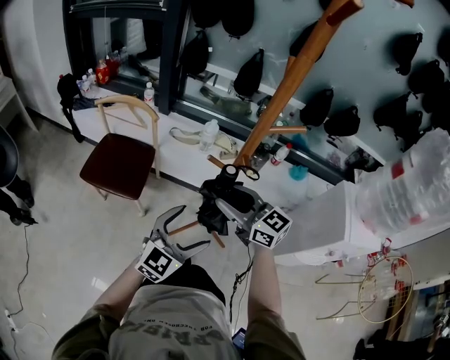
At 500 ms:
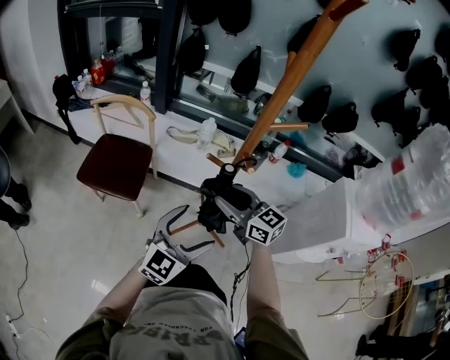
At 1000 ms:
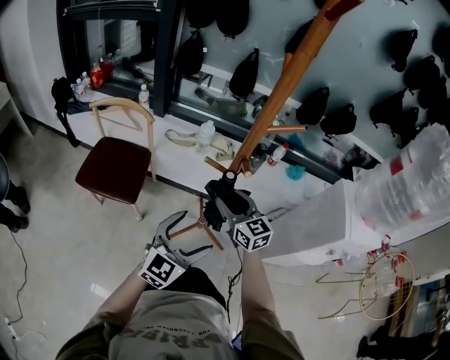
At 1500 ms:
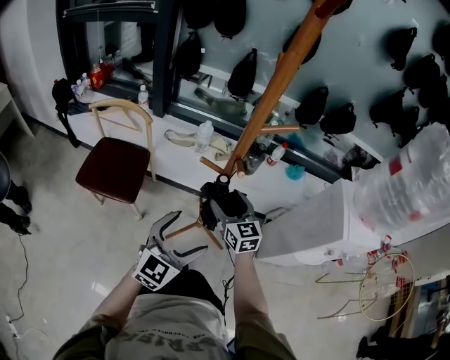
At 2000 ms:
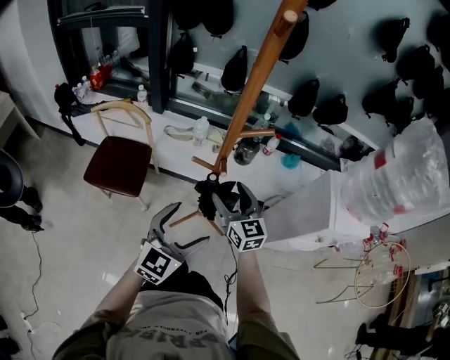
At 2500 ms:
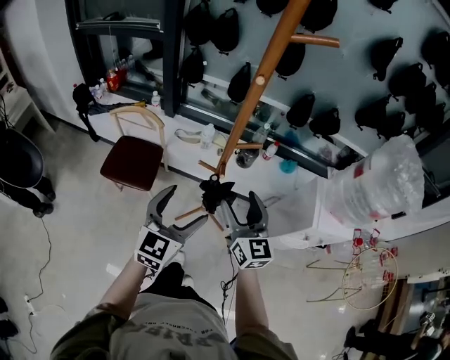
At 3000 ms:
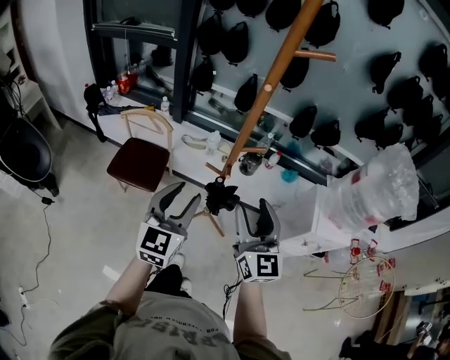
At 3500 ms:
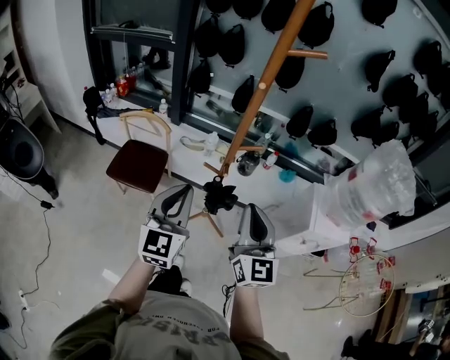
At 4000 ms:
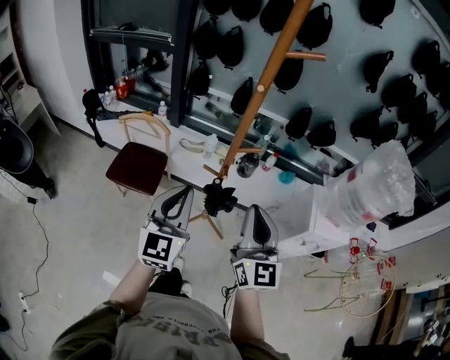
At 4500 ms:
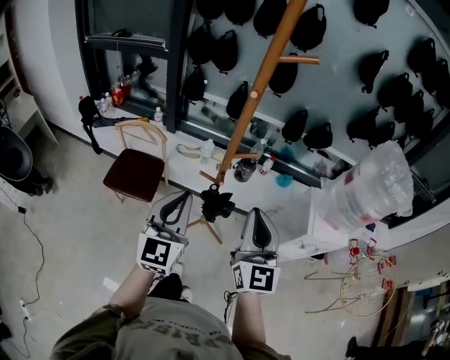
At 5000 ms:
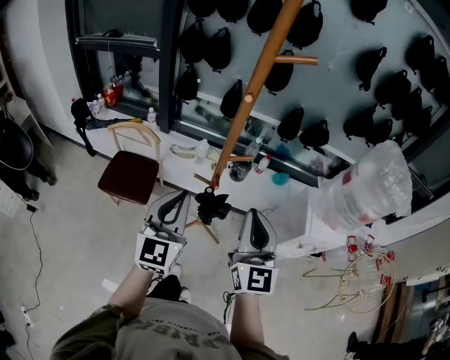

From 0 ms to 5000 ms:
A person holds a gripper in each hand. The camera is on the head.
From 0 ms to 2500 ms: The right gripper moves upward, backward and to the right, some 20 cm, turns by some 40 degrees, and opens. The left gripper goes about 25 cm upward.
From 2500 ms to 5000 ms: The right gripper is displaced upward and backward by approximately 15 cm, rotates some 20 degrees, and closes its fingers. Meanwhile the left gripper heads upward, covering about 10 cm, and closes up.

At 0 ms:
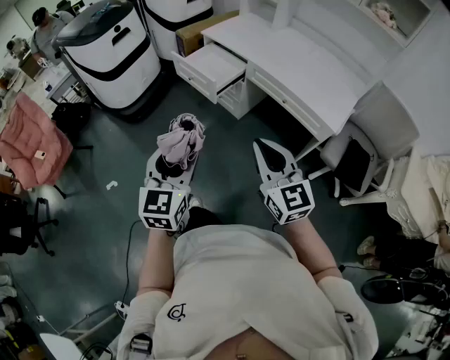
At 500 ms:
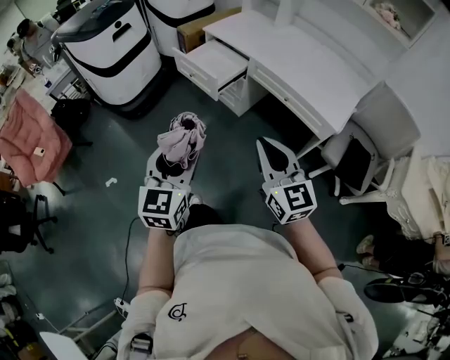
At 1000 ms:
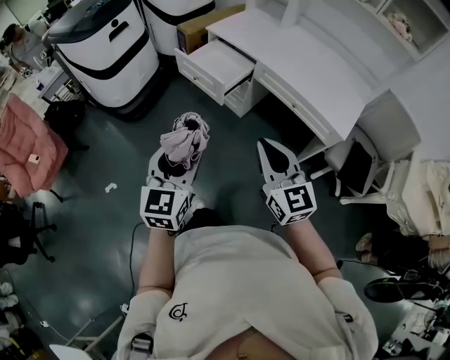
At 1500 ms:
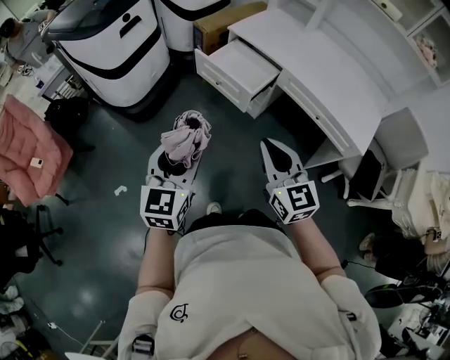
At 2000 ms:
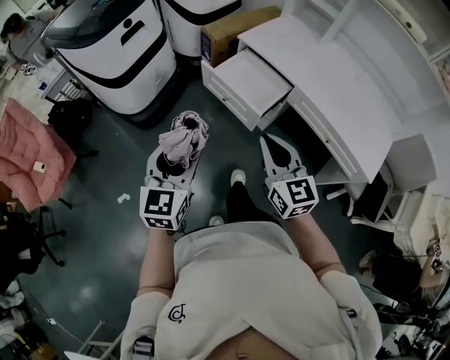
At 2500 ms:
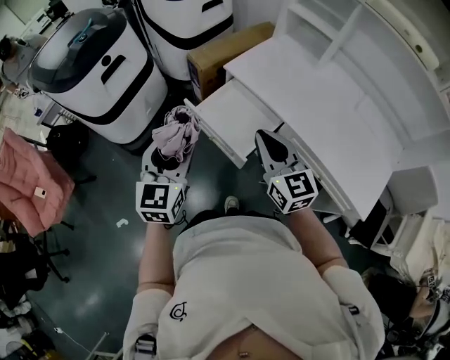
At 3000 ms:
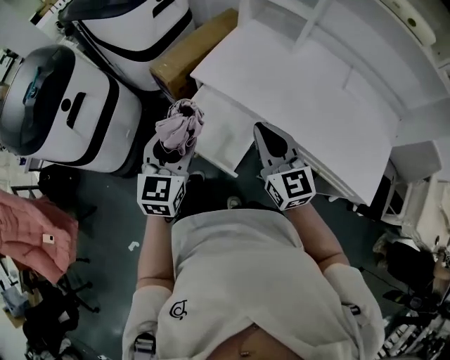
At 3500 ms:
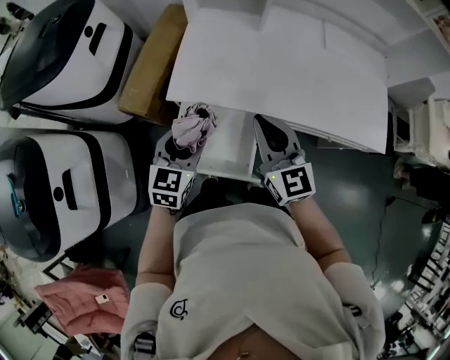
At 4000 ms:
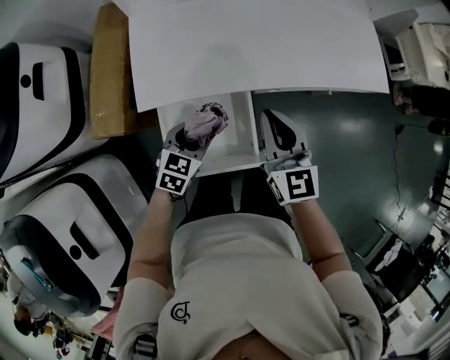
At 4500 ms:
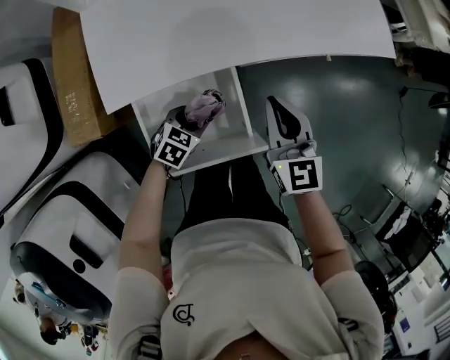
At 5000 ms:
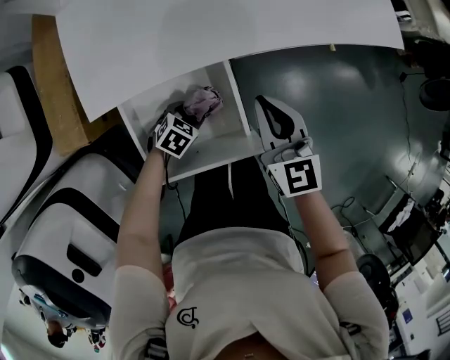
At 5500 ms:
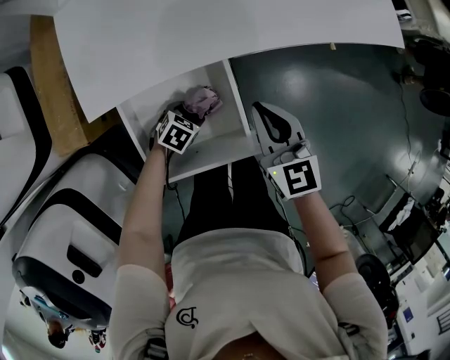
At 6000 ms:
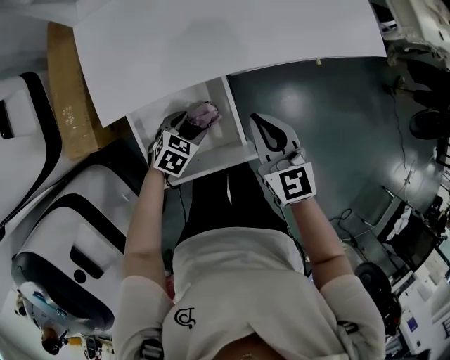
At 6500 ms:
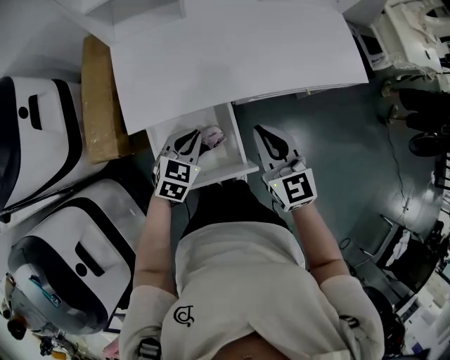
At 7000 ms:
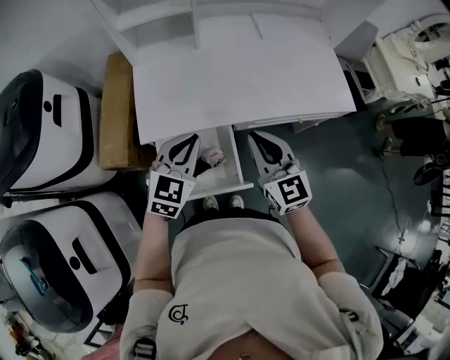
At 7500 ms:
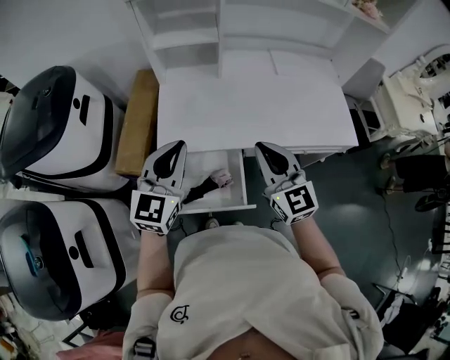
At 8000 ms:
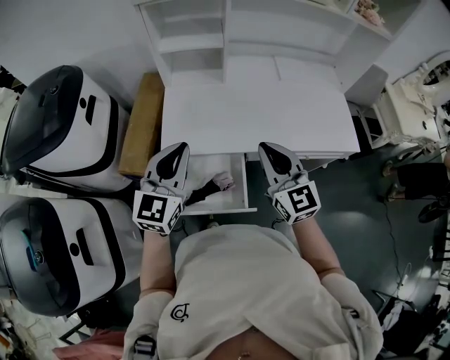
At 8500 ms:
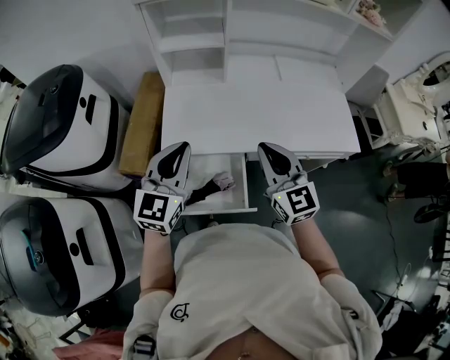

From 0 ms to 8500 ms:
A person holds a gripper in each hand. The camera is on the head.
From 0 ms to 2000 ms: The two grippers go some 35 cm forward and to the left.
From 2000 ms to 4000 ms: The left gripper shifts by some 60 cm, and turns by approximately 80 degrees. Meanwhile the right gripper moves roughly 40 cm, and swivels about 60 degrees.
From 4000 ms to 6500 ms: The right gripper reaches some 15 cm downward, then returns, while the left gripper travels downward and back again, approximately 25 cm each way, and closes its fingers.
From 6500 ms to 8500 ms: The right gripper goes roughly 15 cm upward. The left gripper goes about 30 cm upward, and points its fingers some 40 degrees further upward.

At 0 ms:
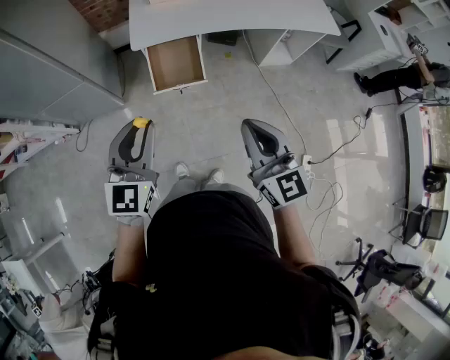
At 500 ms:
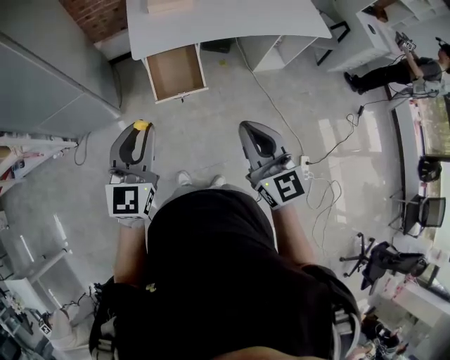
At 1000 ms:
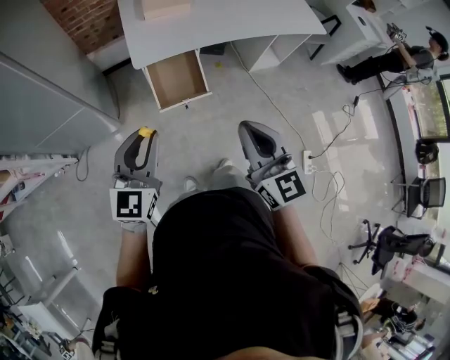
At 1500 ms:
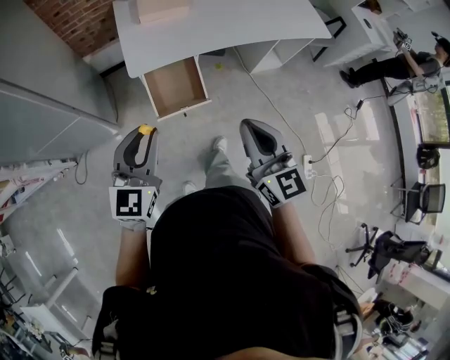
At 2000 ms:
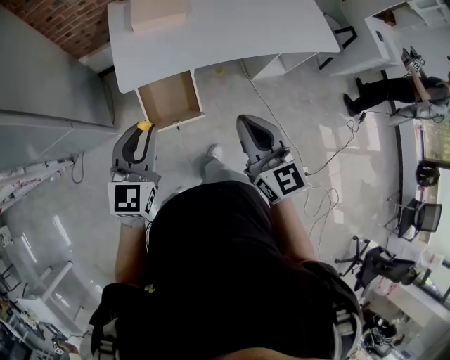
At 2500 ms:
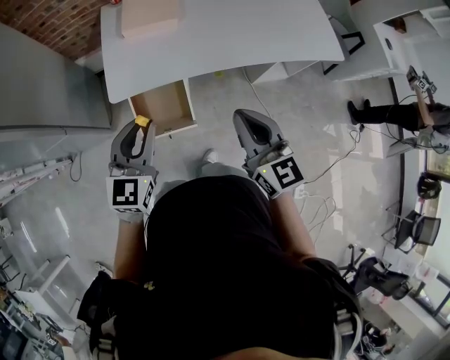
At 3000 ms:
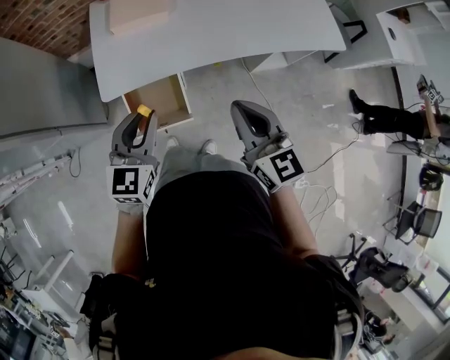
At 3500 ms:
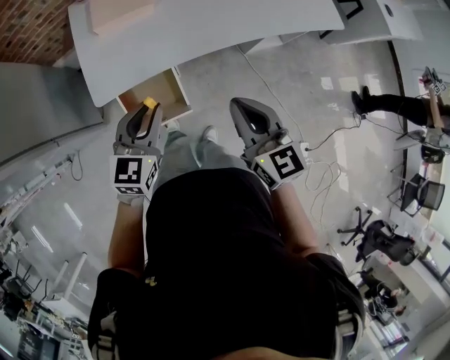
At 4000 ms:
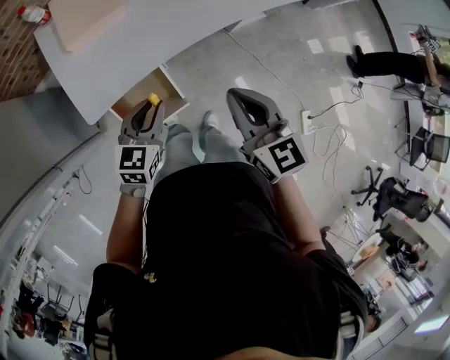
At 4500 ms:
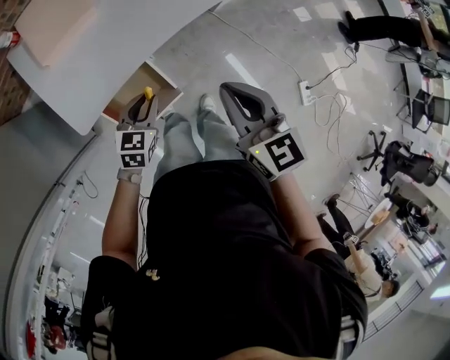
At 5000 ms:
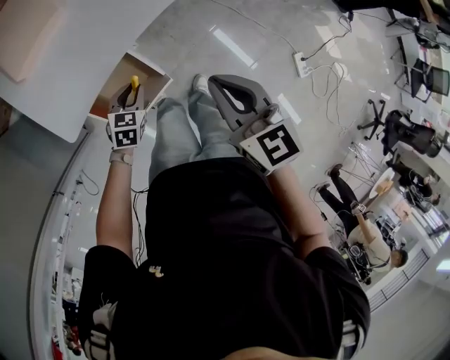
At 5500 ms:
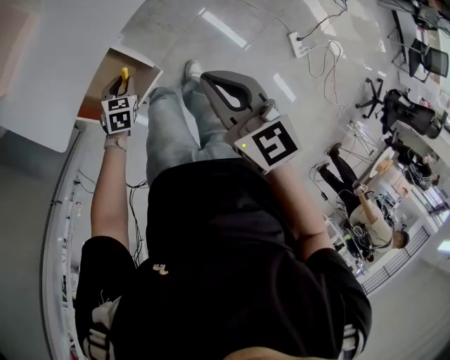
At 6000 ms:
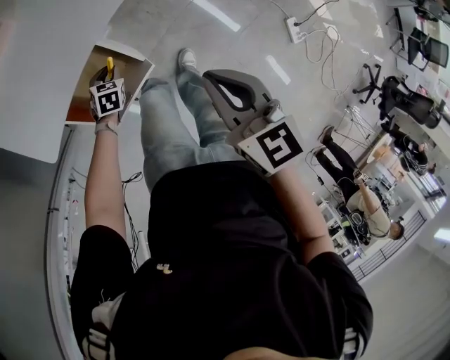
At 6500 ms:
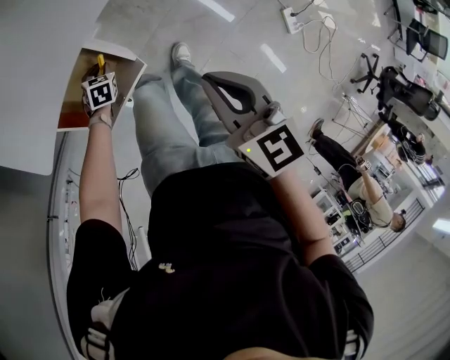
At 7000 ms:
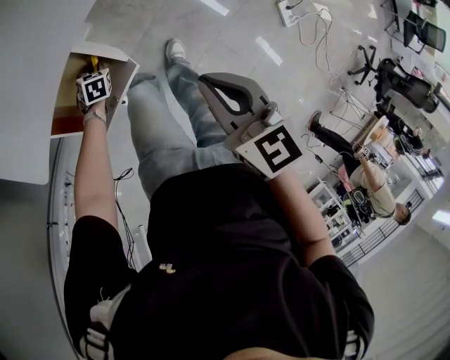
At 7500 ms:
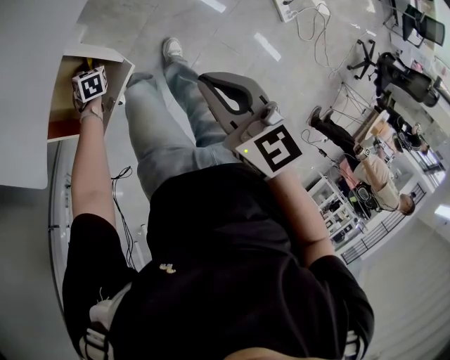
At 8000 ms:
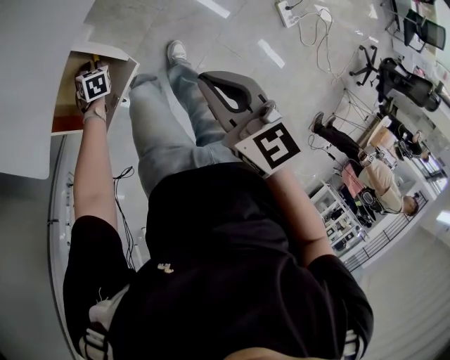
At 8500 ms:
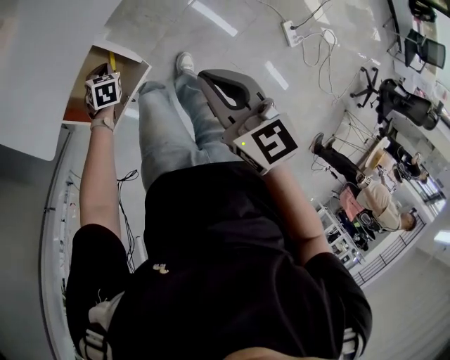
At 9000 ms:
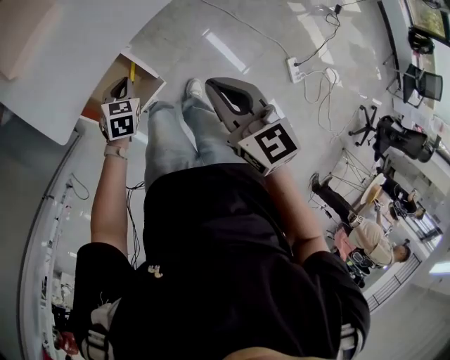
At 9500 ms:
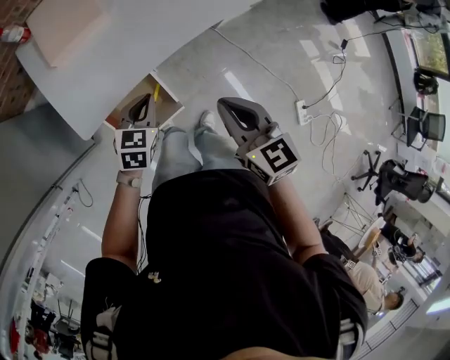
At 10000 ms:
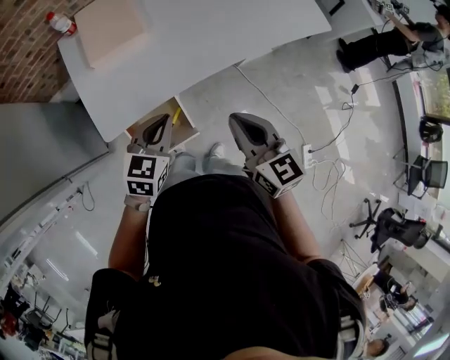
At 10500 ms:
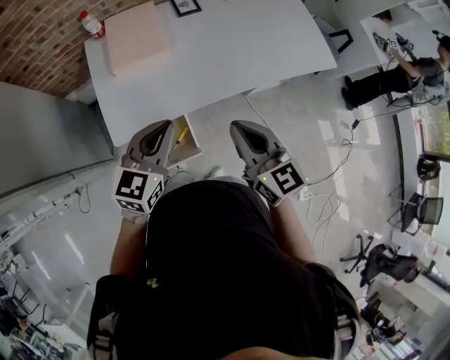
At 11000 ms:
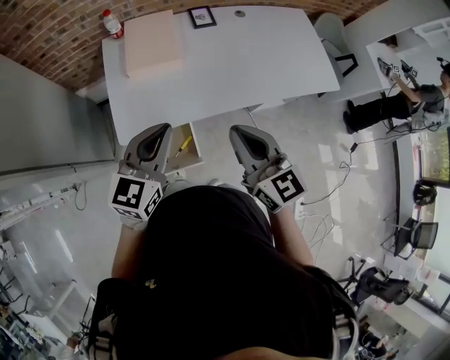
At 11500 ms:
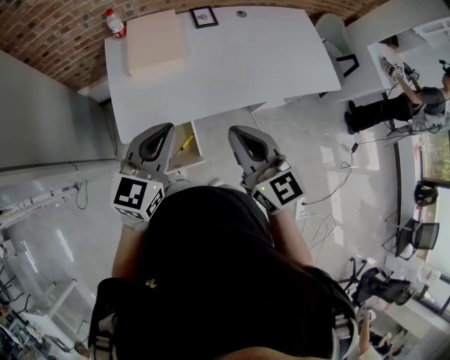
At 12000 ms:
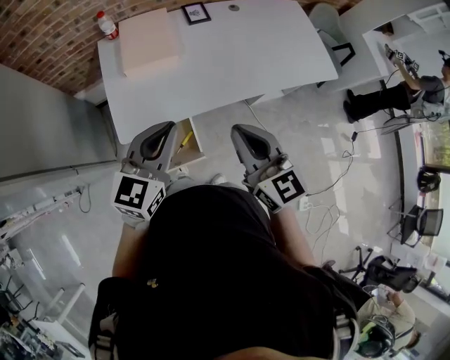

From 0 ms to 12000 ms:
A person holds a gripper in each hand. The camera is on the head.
From 0 ms to 2000 ms: Both grippers travel together forward, approximately 25 cm.
From 2000 ms to 4000 ms: The left gripper is displaced forward, downward and to the right by about 25 cm, and turns by about 30 degrees. The right gripper is displaced forward, downward and to the right by approximately 15 cm.
From 4000 ms to 6000 ms: The right gripper moves downward, some 15 cm, and turns by about 20 degrees. The left gripper shifts about 40 cm downward, and tilts its fingers some 40 degrees downward.
From 6000 ms to 8000 ms: The left gripper moves downward, approximately 10 cm. The right gripper shifts by roughly 5 cm.
From 8000 ms to 10000 ms: The right gripper goes roughly 25 cm upward, and rotates some 30 degrees. The left gripper shifts about 60 cm upward, and tilts its fingers approximately 40 degrees upward.
From 10000 ms to 12000 ms: The left gripper shifts some 15 cm upward, and rotates approximately 20 degrees. Meanwhile the right gripper goes about 10 cm upward.

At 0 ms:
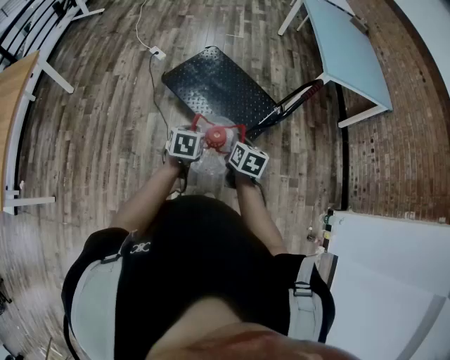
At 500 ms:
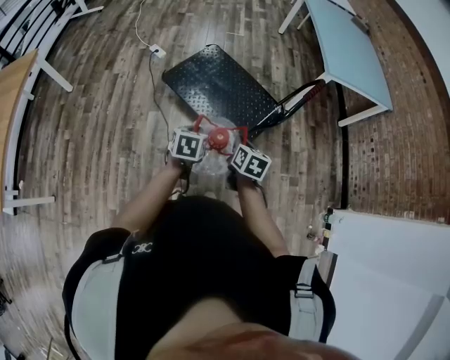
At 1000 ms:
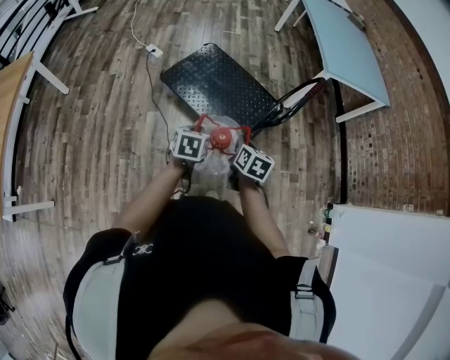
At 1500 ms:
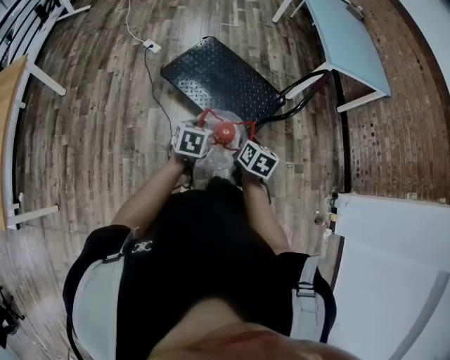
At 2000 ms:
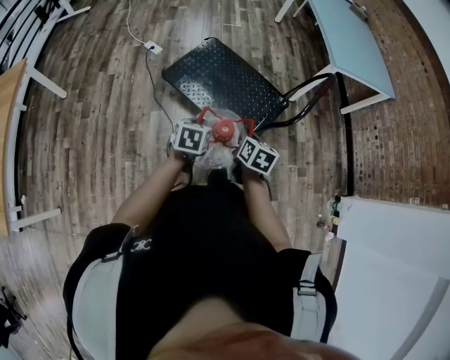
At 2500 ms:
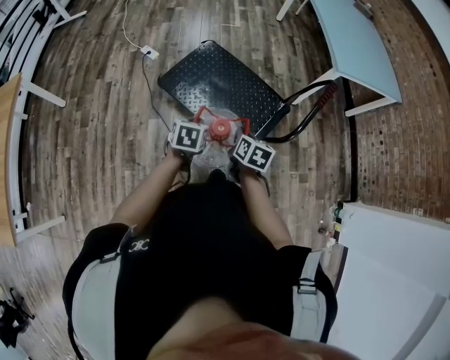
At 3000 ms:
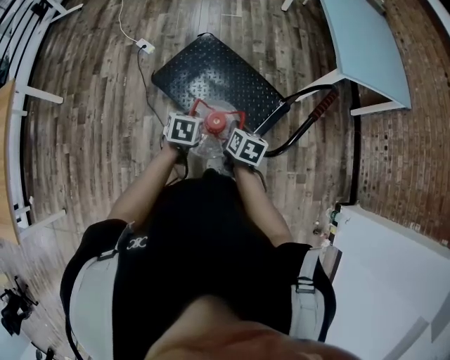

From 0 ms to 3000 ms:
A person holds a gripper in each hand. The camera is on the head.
From 0 ms to 1500 ms: There are only small adjustments of the grippers.
From 1500 ms to 3000 ms: Both grippers travel together forward, some 20 cm.
